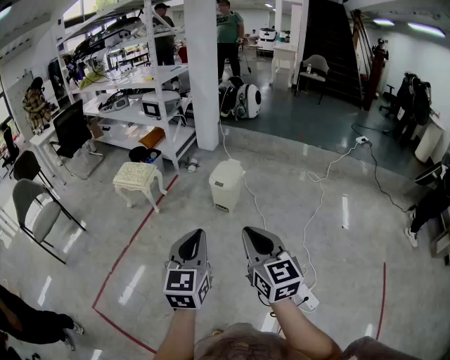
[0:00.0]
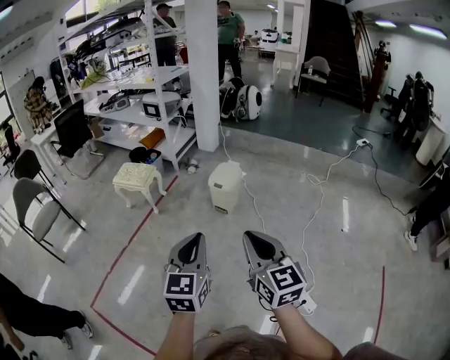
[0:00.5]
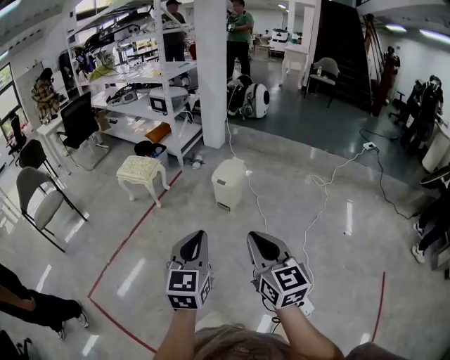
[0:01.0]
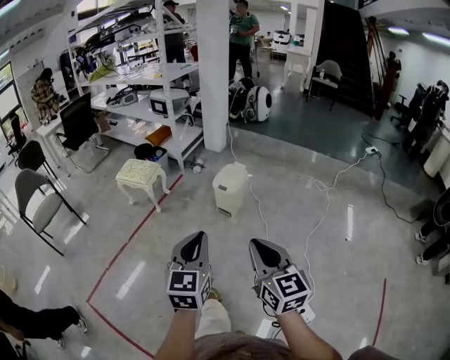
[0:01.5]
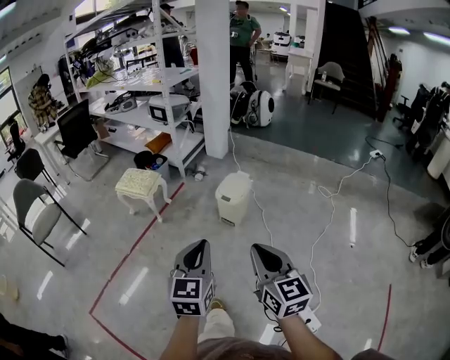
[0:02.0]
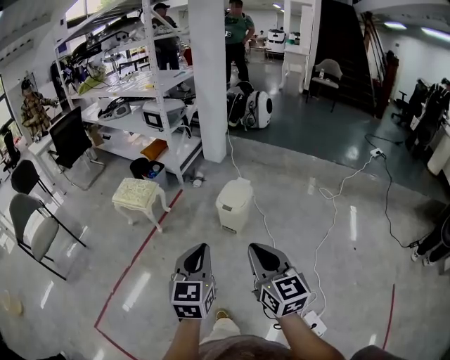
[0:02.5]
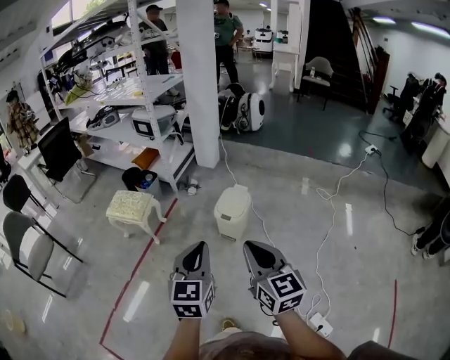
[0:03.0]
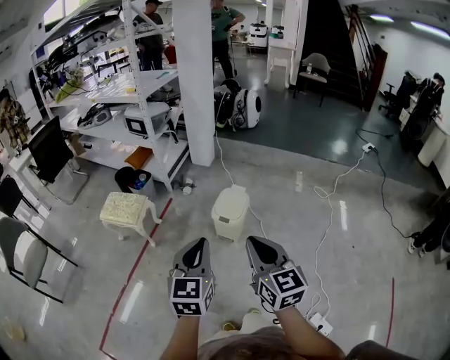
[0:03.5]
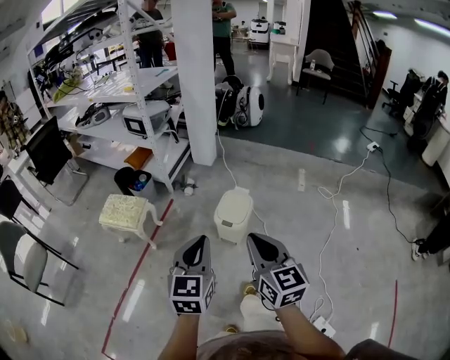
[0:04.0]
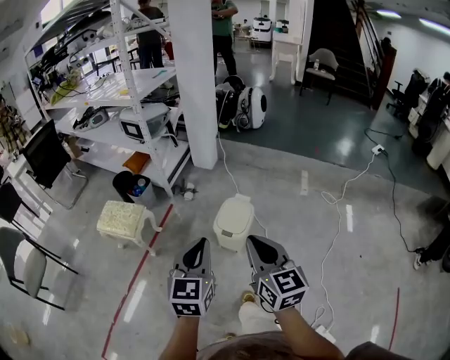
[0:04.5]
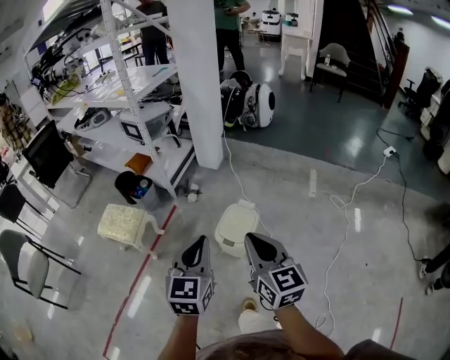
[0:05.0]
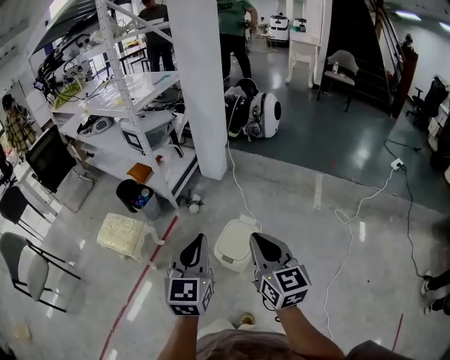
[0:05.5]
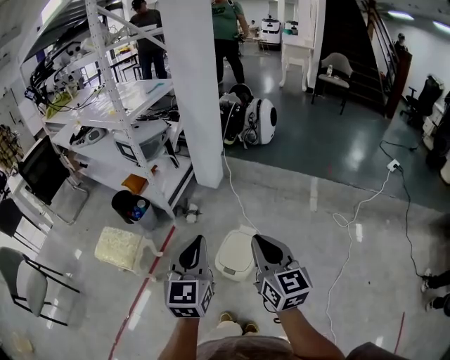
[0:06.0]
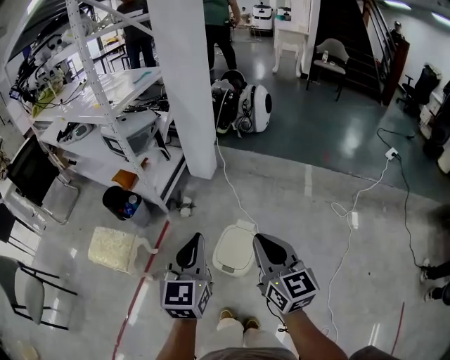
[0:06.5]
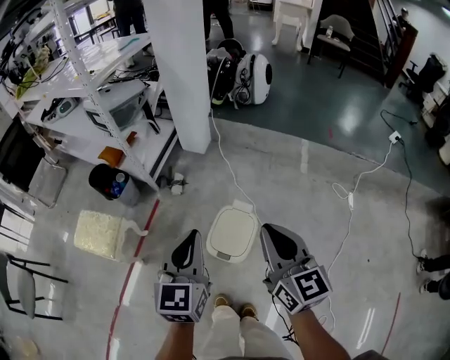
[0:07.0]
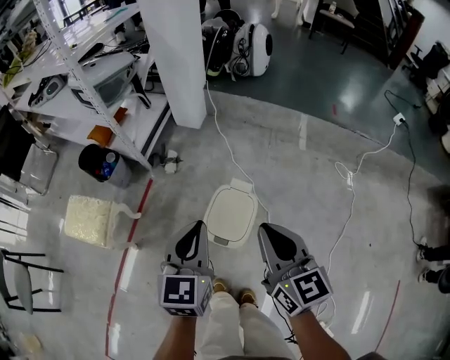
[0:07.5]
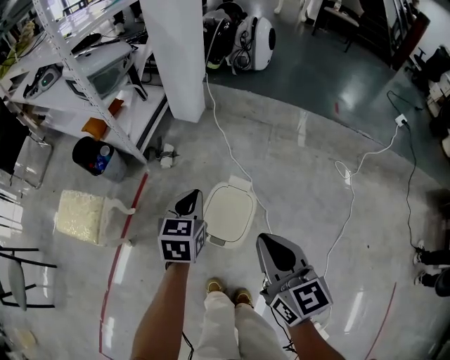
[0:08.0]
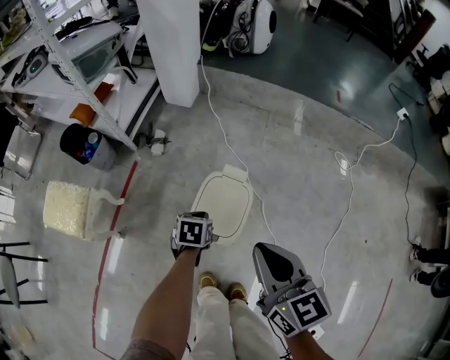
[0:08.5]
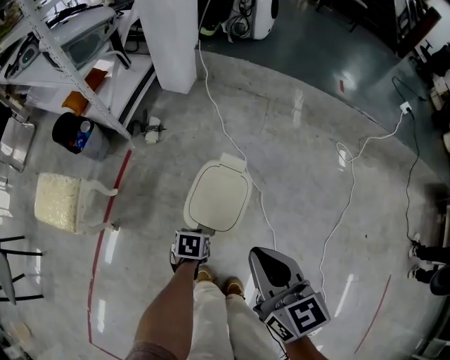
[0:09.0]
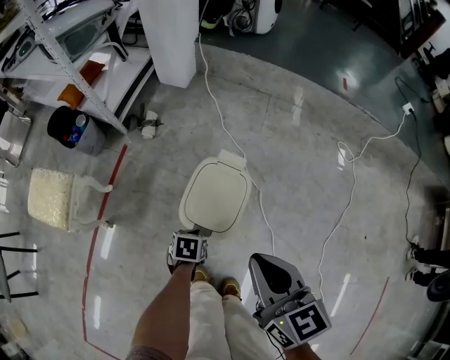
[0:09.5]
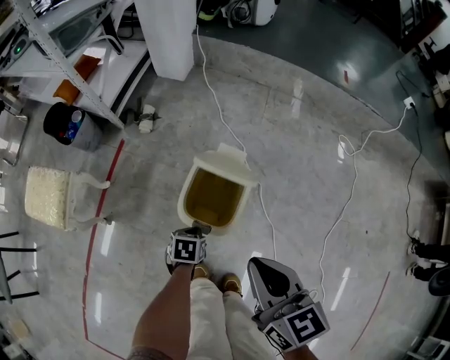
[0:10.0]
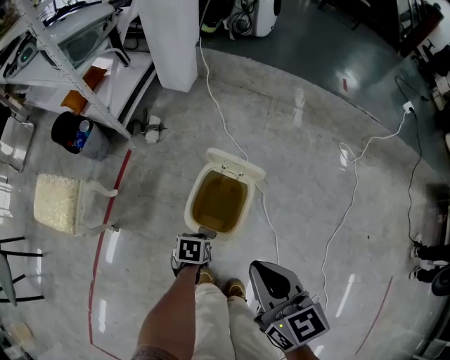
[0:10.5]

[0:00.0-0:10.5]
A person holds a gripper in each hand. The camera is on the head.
0:00.0 to 0:02.0: Both grippers move forward, about 10 cm.
0:02.0 to 0:04.0: The two grippers go some 25 cm forward.
0:04.0 to 0:06.5: The grippers both shift forward by roughly 30 cm.
0:06.5 to 0:08.5: The right gripper goes approximately 20 cm downward, while the left gripper is displaced downward by roughly 50 cm, and angles its fingers downward, by about 50 degrees.
0:08.5 to 0:10.5: The right gripper travels downward by about 5 cm, while the left gripper is displaced downward and backward by about 15 cm.

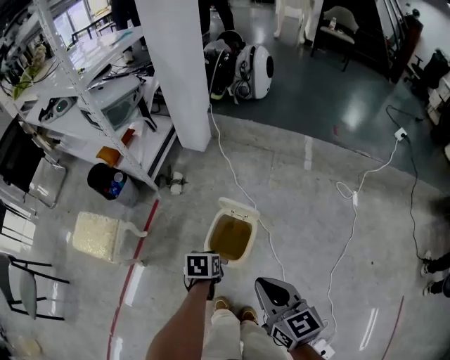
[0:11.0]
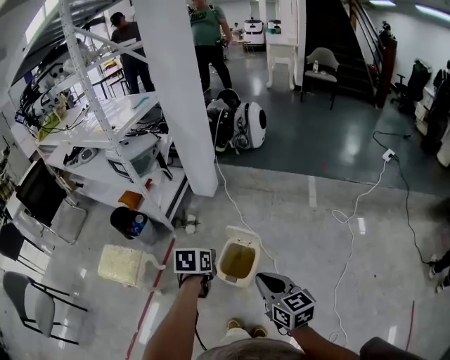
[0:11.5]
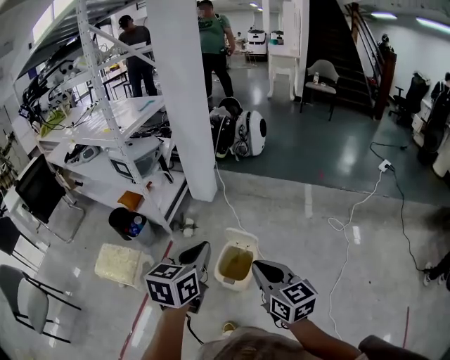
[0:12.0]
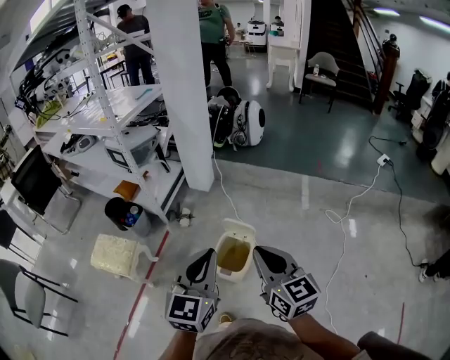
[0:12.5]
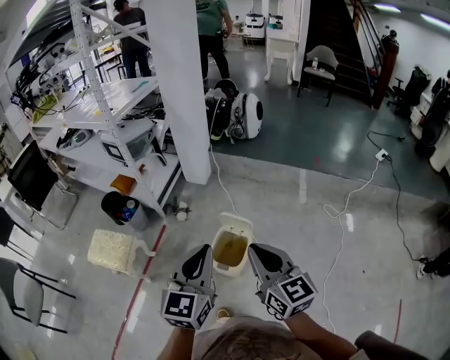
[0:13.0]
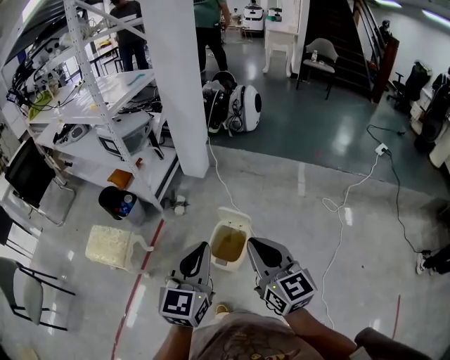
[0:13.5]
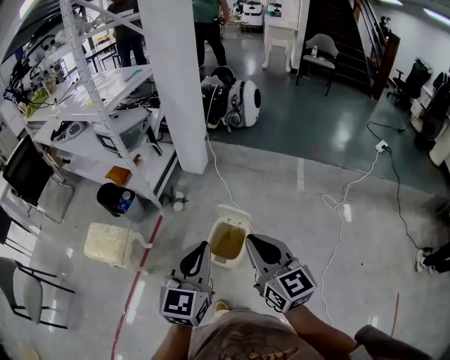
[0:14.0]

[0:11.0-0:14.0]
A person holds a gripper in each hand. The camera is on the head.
0:11.0 to 0:12.5: The left gripper goes roughly 40 cm upward, and points its fingers about 50 degrees further upward; the right gripper moves upward, some 20 cm.
0:12.5 to 0:14.0: The grippers make only small movements.

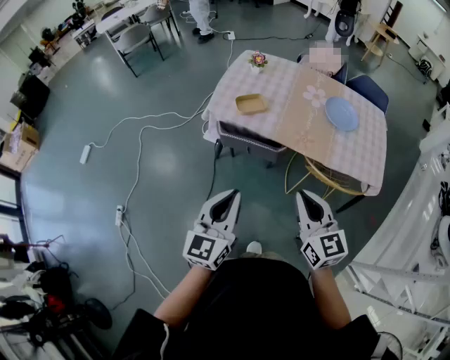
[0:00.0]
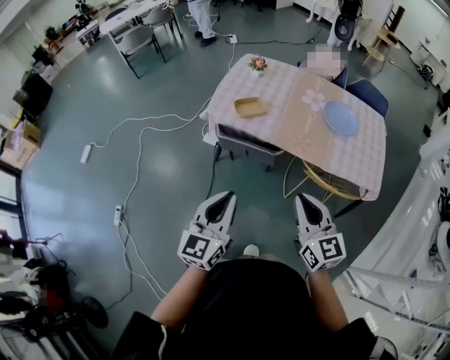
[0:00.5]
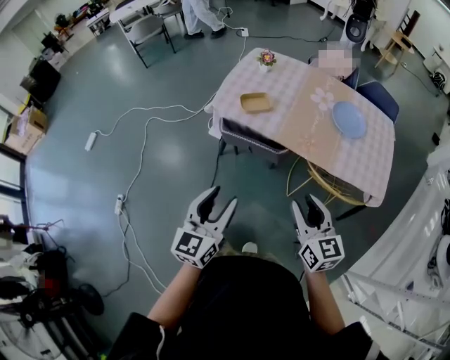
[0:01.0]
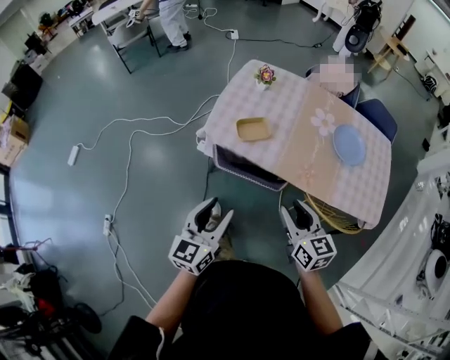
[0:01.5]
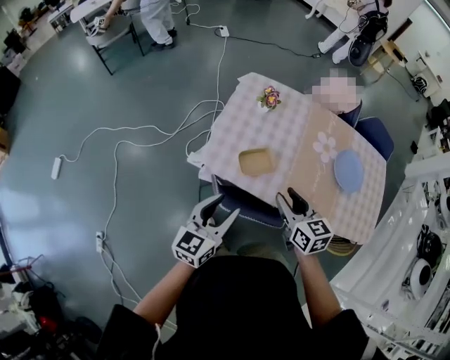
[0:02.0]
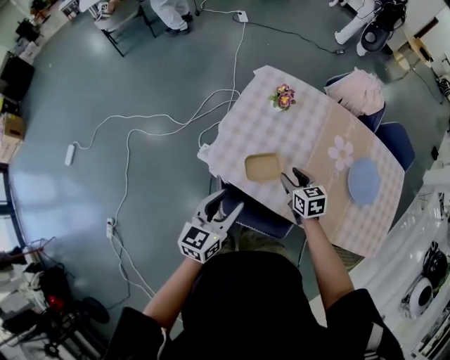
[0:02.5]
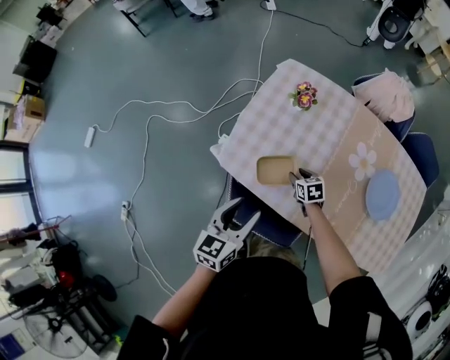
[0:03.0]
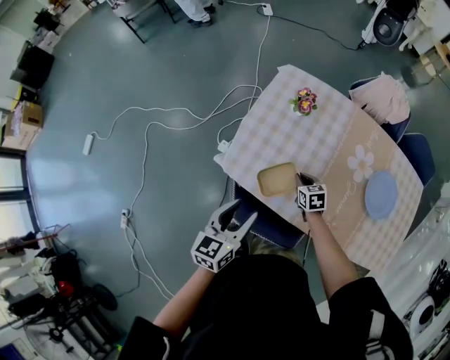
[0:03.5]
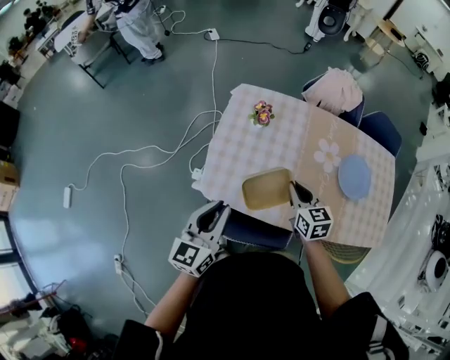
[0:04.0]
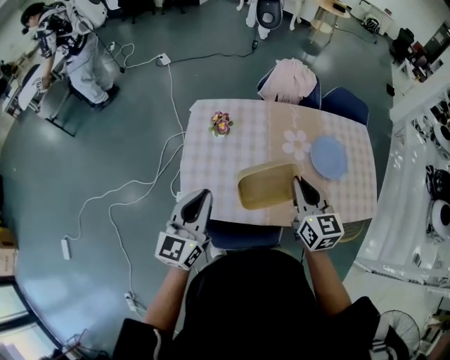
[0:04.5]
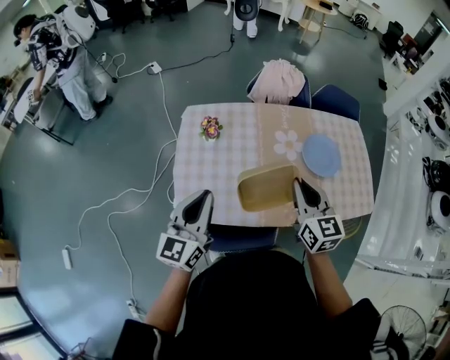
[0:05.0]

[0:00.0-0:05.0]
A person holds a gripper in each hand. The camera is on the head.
0:00.0 to 0:02.5: Both grippers are carried forward, some 50 cm. The right gripper moves downward, roughly 25 cm, tilts its fingers about 30 degrees downward, and opens its fingers; the left gripper swivels roughly 20 degrees, and opens its fingers.
0:02.5 to 0:05.0: The left gripper moves upward, approximately 15 cm, rotates some 30 degrees, and closes up. The right gripper goes roughly 25 cm upward, changes its angle by about 40 degrees, and closes.

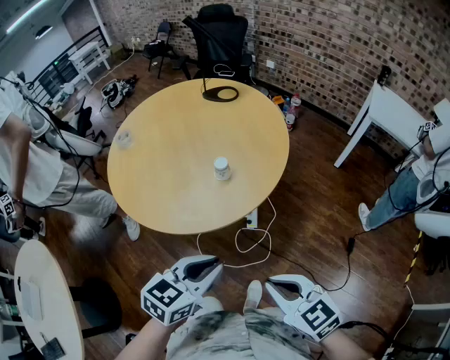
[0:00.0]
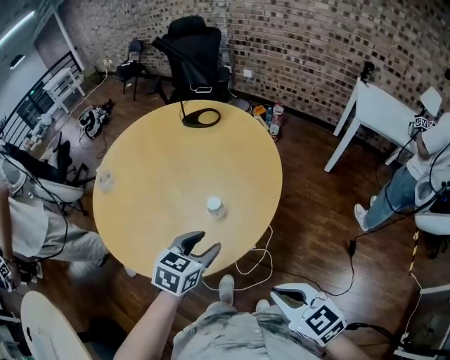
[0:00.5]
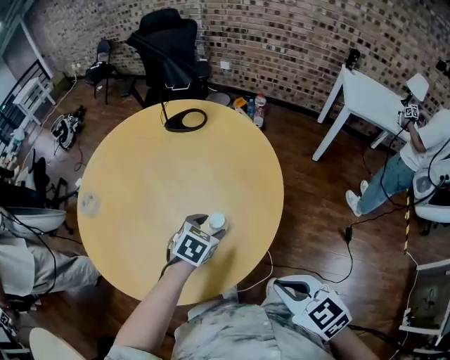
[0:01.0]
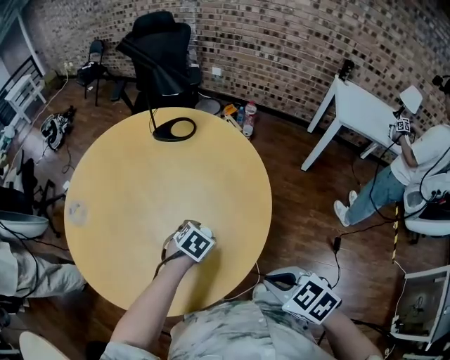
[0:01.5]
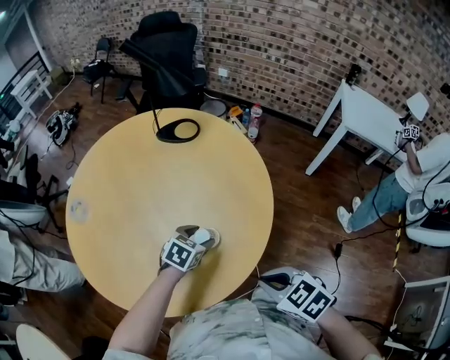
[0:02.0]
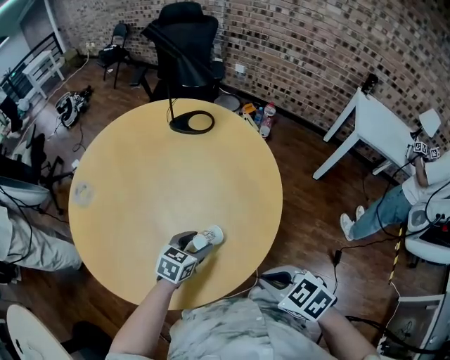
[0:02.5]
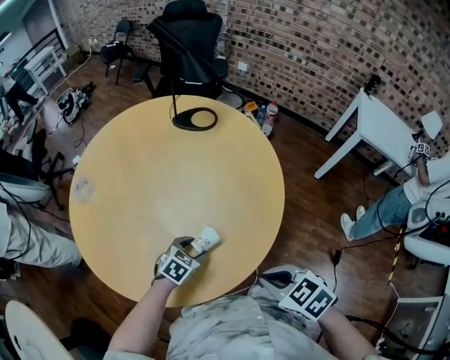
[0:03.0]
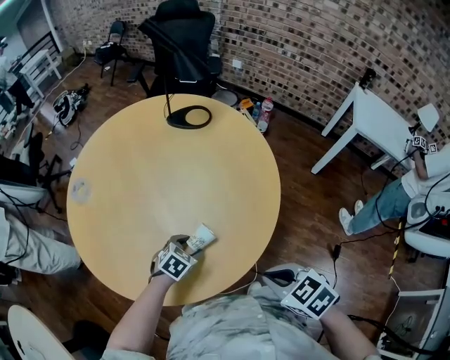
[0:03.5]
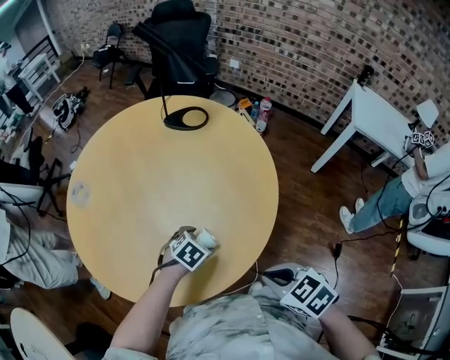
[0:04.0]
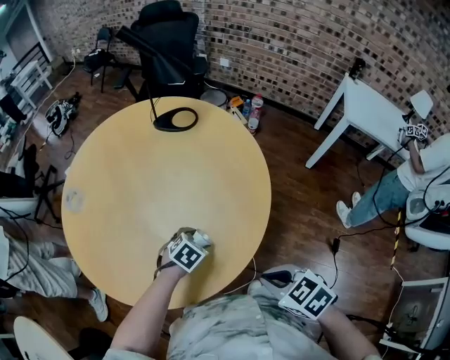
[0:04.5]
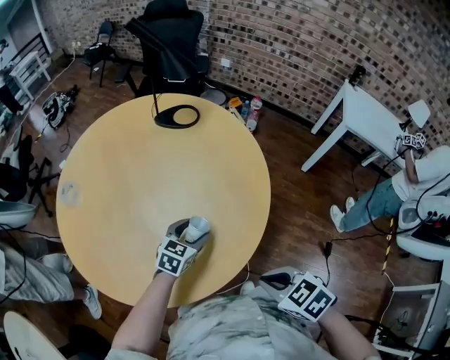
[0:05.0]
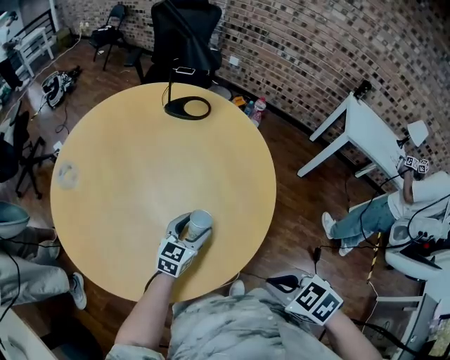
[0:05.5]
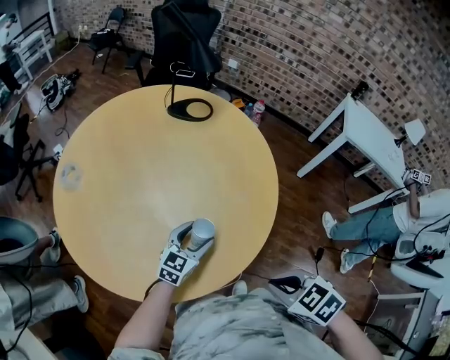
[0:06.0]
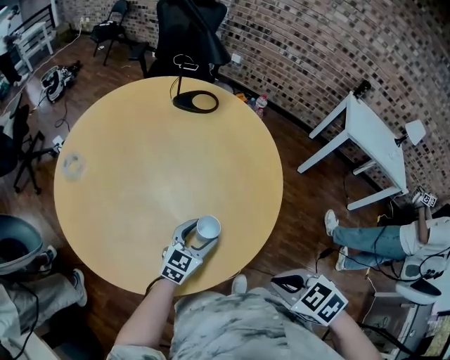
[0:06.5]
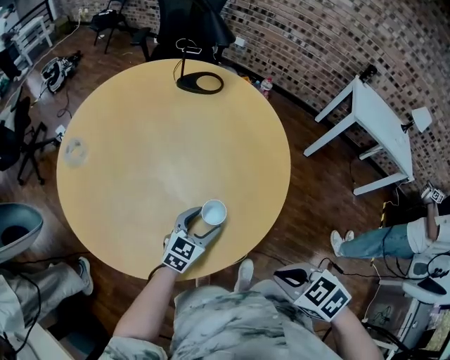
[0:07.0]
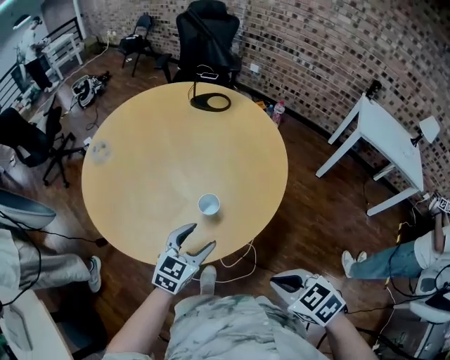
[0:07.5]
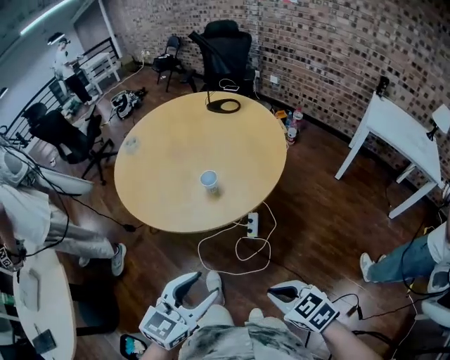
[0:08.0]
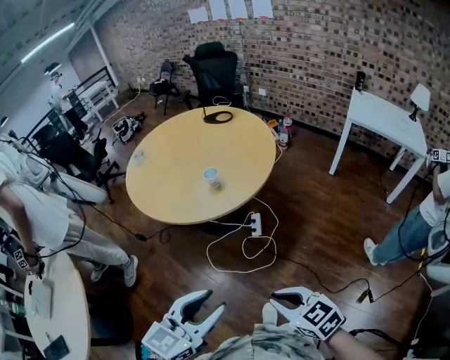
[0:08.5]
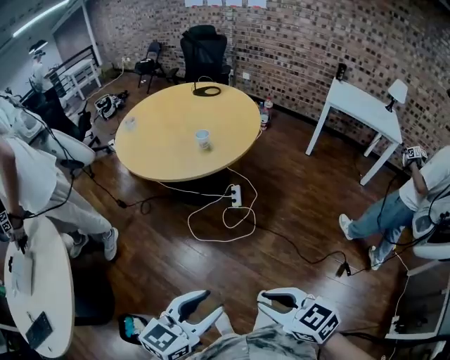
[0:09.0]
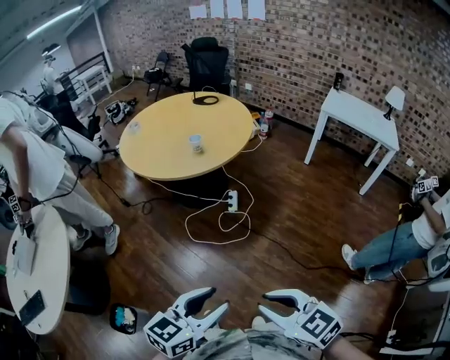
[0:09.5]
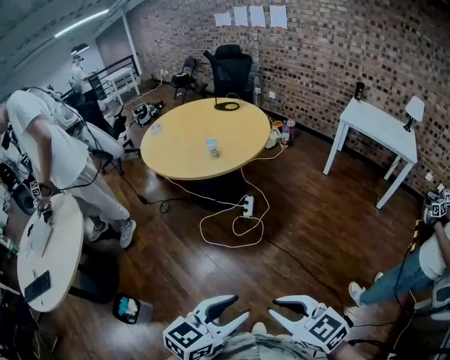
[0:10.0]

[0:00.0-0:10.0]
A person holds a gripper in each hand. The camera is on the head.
0:00.0 to 0:02.0: The right gripper travels forward by some 25 cm, and swivels some 20 degrees, while the left gripper moves forward and downward, approximately 40 cm, swivels some 30 degrees, and opens up.
0:02.0 to 0:04.0: The left gripper moves downward, some 5 cm.
0:04.0 to 0:06.0: The left gripper tilts its fingers about 50 degrees upward.
0:06.0 to 0:08.0: The right gripper heads backward, covering some 25 cm, and swivels roughly 20 degrees, while the left gripper moves backward and upward, approximately 50 cm.
0:08.0 to 0:10.0: The pair of grippers is taken backward, roughly 40 cm.
